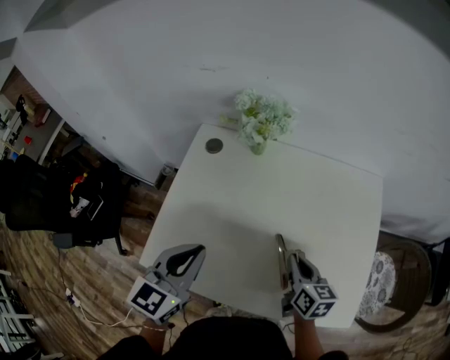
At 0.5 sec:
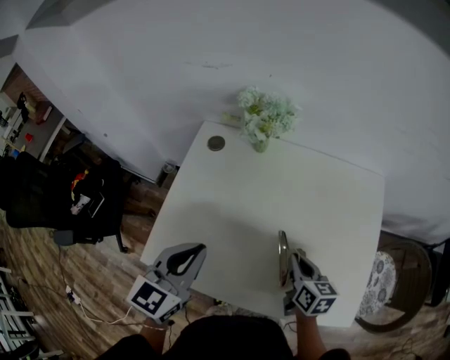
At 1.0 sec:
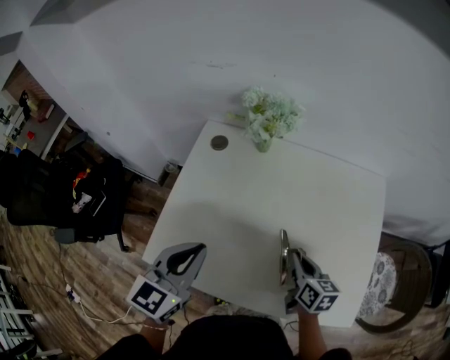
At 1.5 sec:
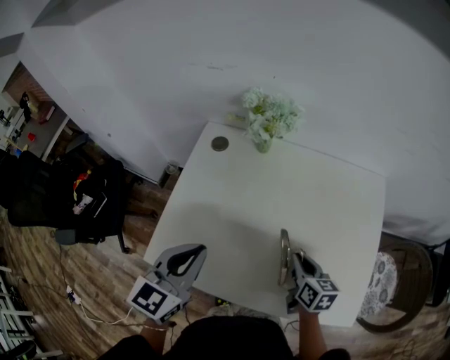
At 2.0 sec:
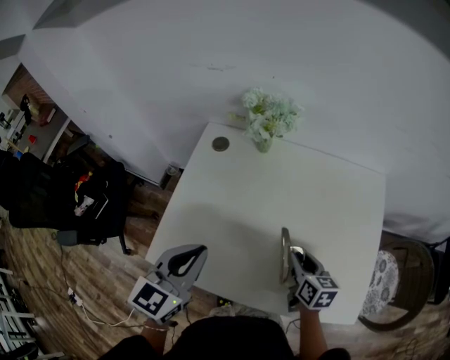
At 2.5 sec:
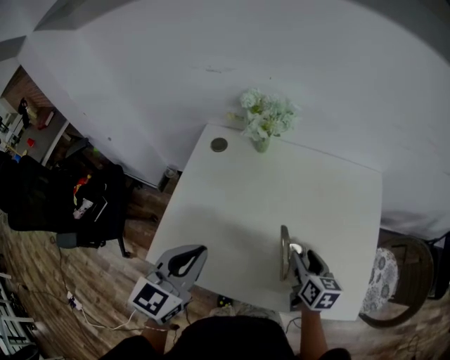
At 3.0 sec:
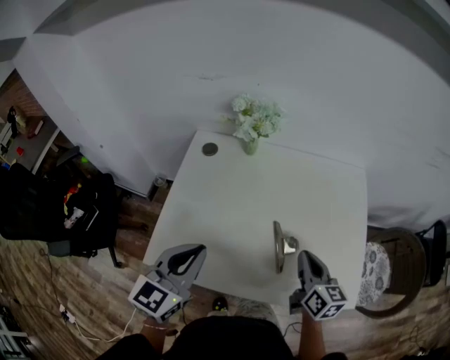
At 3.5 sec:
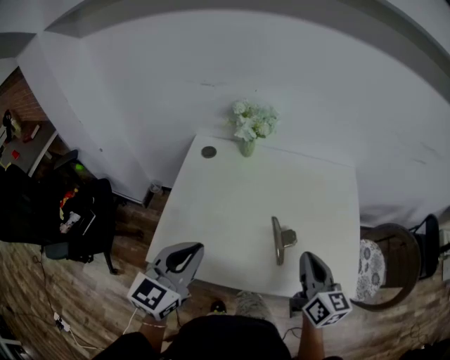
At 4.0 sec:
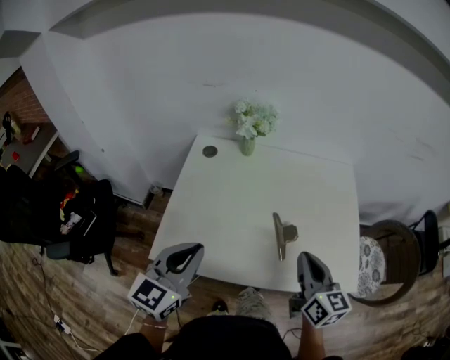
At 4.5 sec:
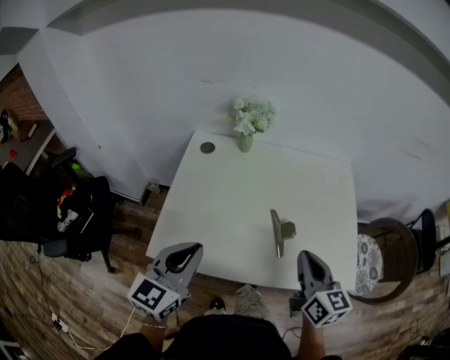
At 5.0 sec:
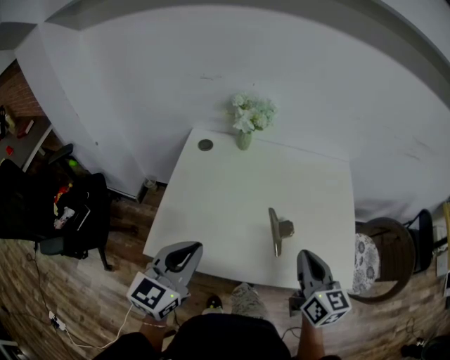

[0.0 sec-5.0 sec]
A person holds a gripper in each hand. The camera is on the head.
0.0 sec to 2.5 sec: The right gripper opens its fingers.
2.5 sec to 5.0 sec: The right gripper moves upward and backward, some 20 cm, turns by some 20 degrees, and closes its fingers; the left gripper heads backward, covering roughly 10 cm.

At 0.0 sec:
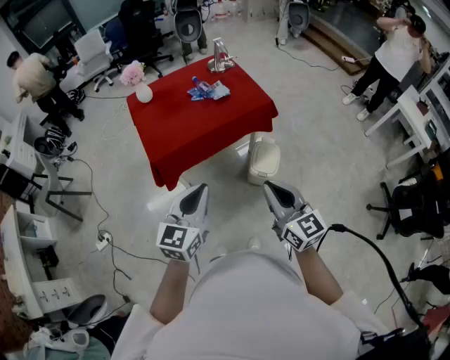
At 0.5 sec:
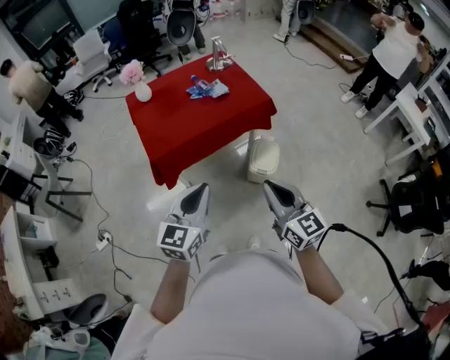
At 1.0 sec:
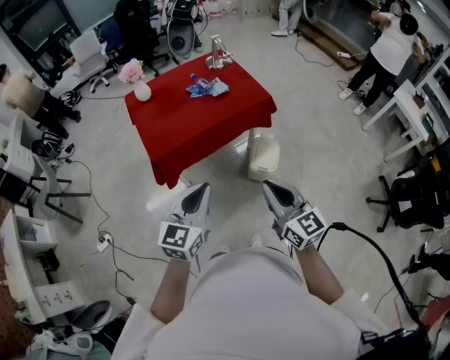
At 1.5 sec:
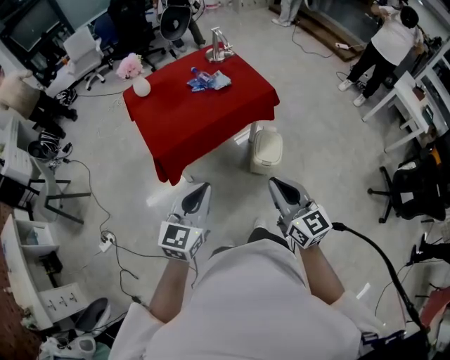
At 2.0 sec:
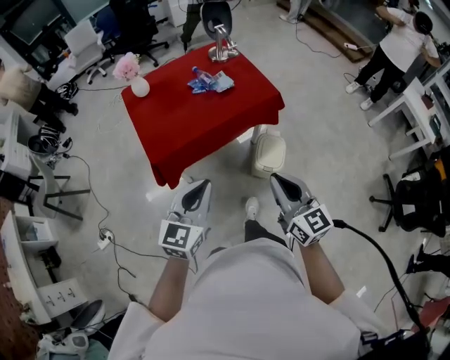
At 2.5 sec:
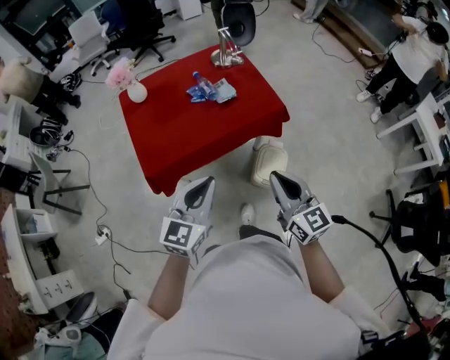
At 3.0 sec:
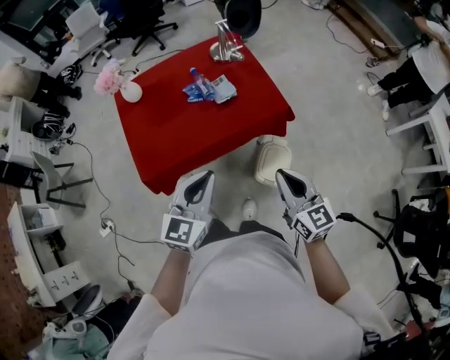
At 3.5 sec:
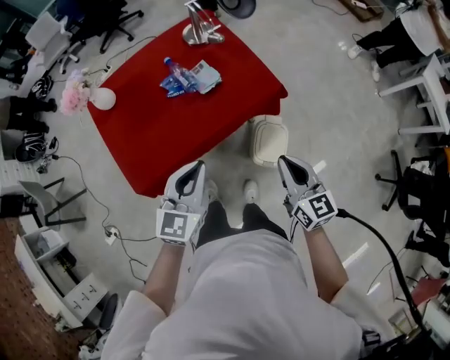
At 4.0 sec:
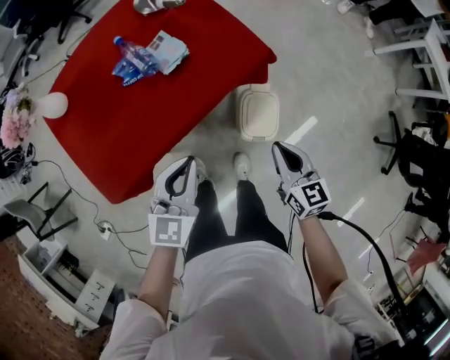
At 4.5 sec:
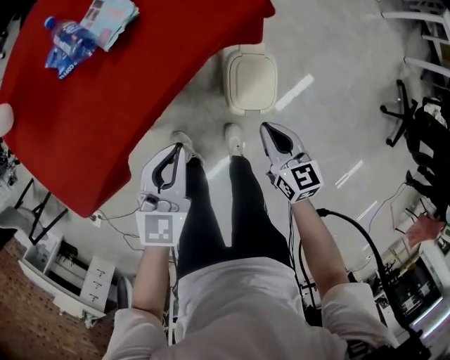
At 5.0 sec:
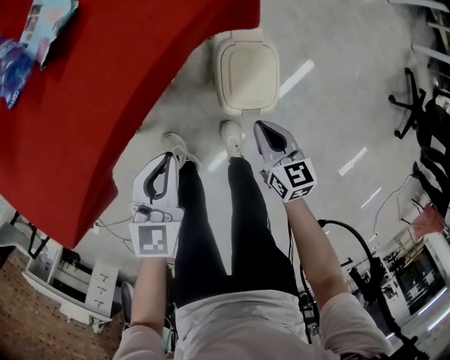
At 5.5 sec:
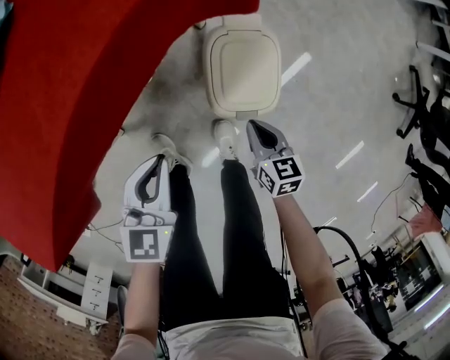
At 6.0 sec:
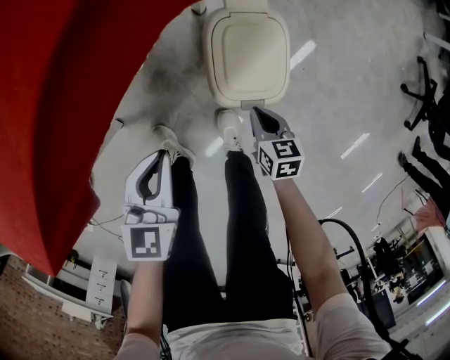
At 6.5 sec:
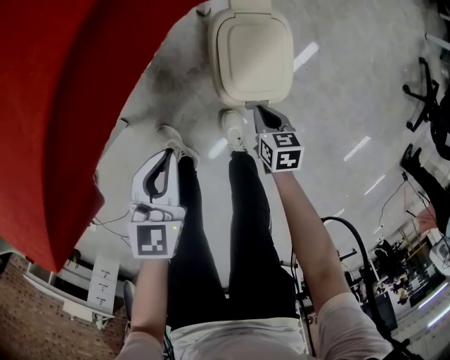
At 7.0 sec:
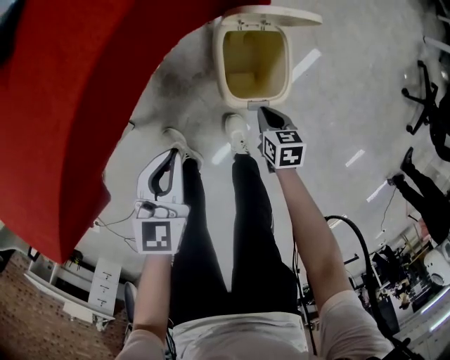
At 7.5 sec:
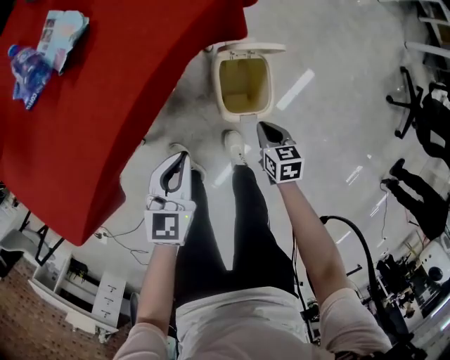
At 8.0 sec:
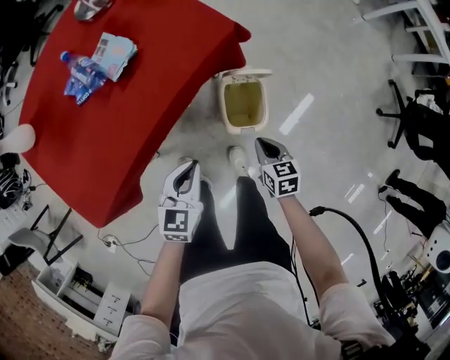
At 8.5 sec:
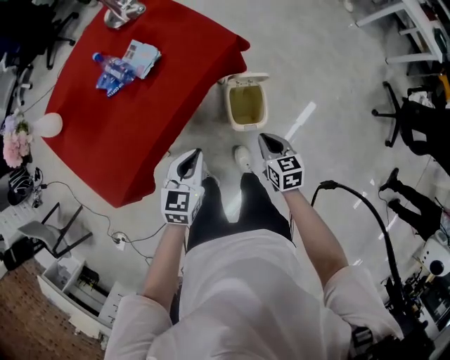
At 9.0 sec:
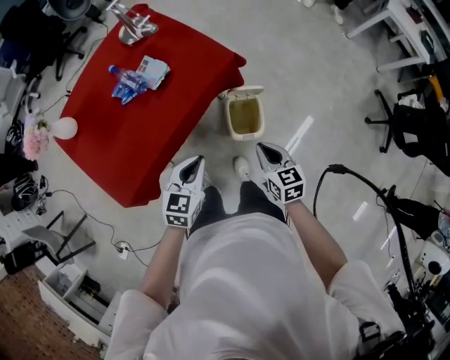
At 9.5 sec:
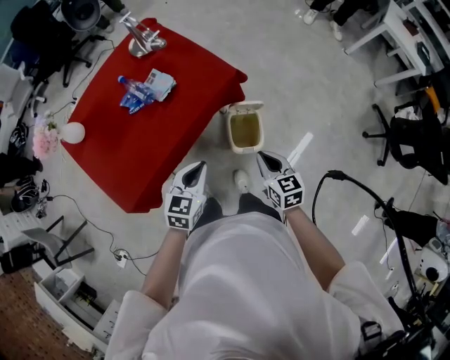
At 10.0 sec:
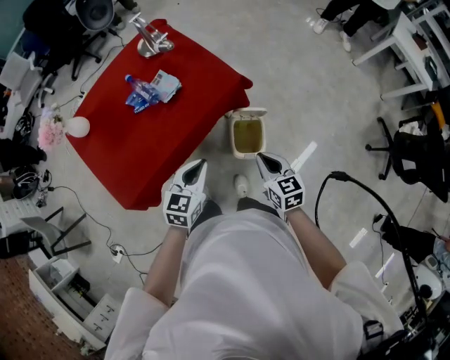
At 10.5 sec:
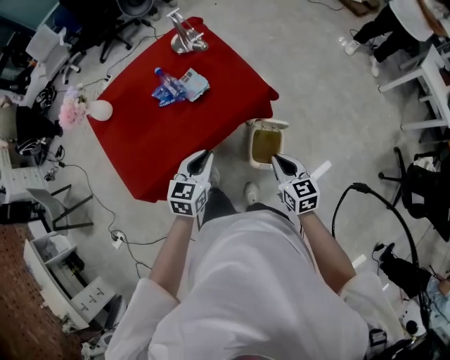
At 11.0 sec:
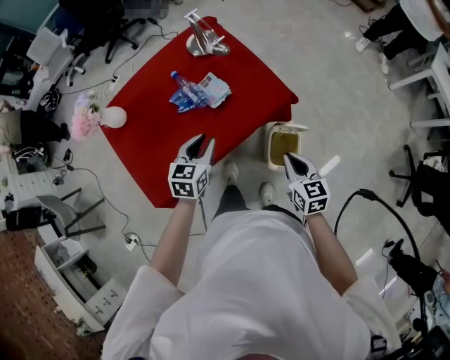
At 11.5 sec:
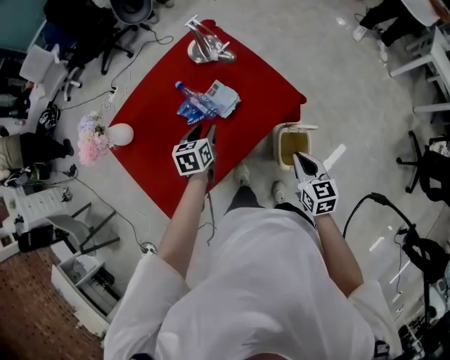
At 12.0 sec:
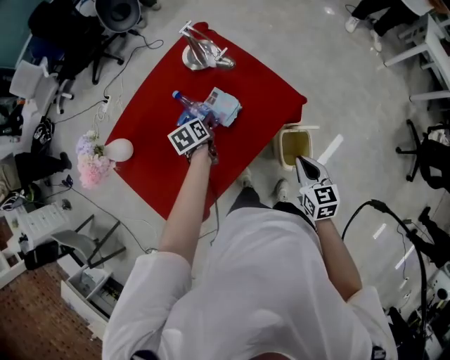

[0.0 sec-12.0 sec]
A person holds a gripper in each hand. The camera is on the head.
0.0 sec to 2.0 sec: The grippers both shift forward by approximately 5 cm.
2.0 sec to 4.0 sec: The right gripper shifts about 40 cm forward, downward and to the right, and turns by roughly 30 degrees, while the left gripper shifts some 35 cm forward and downward.
4.0 sec to 6.0 sec: The two grippers go about 40 cm downward. The right gripper rotates about 30 degrees.
6.0 sec to 8.0 sec: Both grippers move upward, about 25 cm.
8.0 sec to 10.0 sec: Both grippers move upward, some 25 cm.
10.0 sec to 12.0 sec: The left gripper heads forward and to the left, covering roughly 40 cm, rotates roughly 50 degrees, and opens; the right gripper goes roughly 15 cm forward and to the left.

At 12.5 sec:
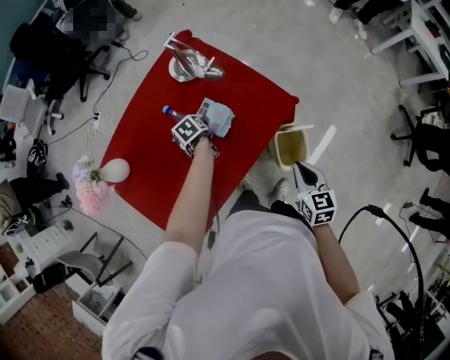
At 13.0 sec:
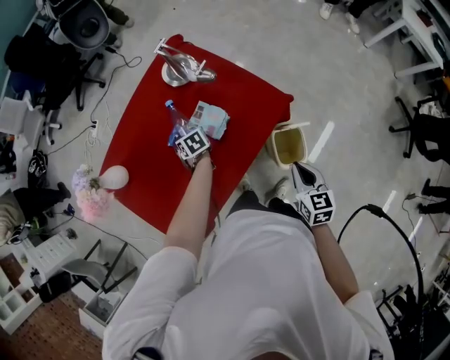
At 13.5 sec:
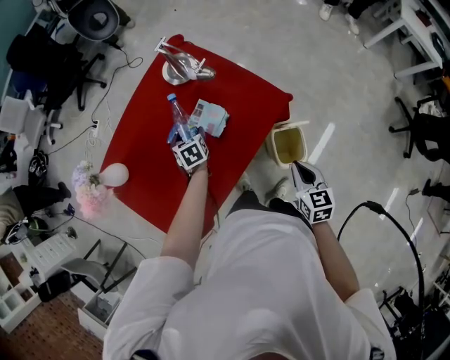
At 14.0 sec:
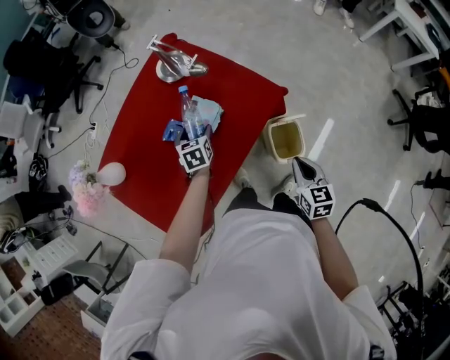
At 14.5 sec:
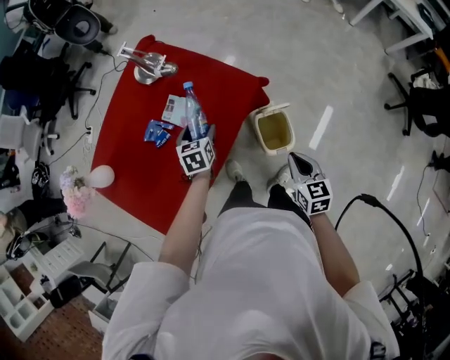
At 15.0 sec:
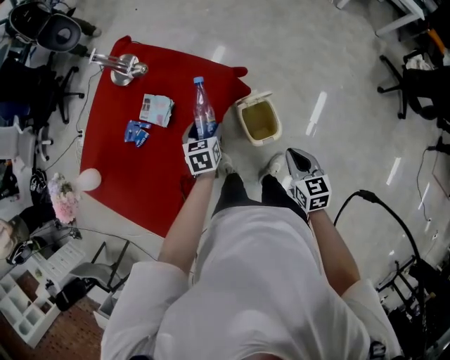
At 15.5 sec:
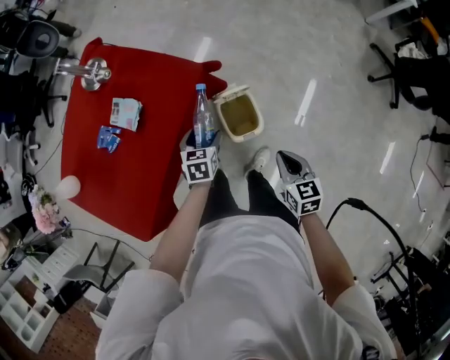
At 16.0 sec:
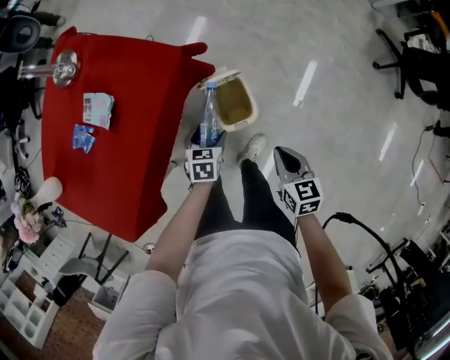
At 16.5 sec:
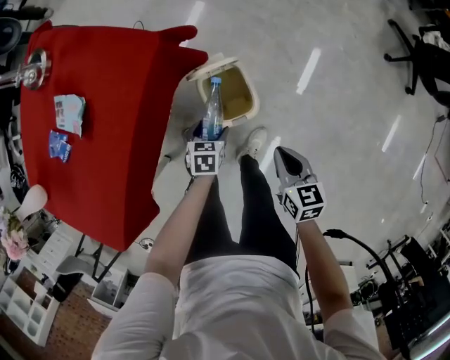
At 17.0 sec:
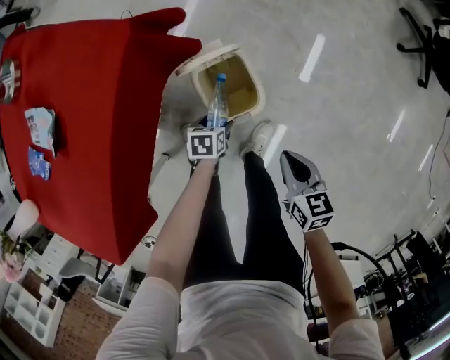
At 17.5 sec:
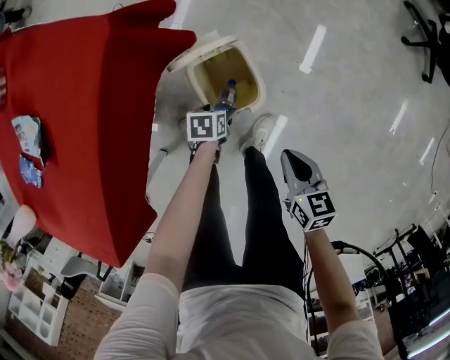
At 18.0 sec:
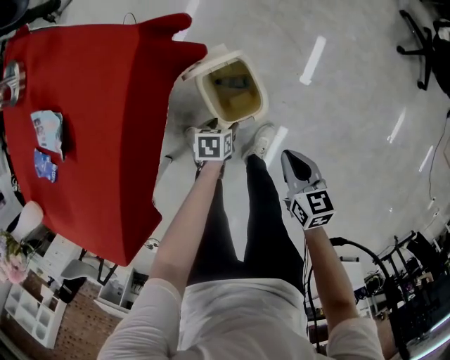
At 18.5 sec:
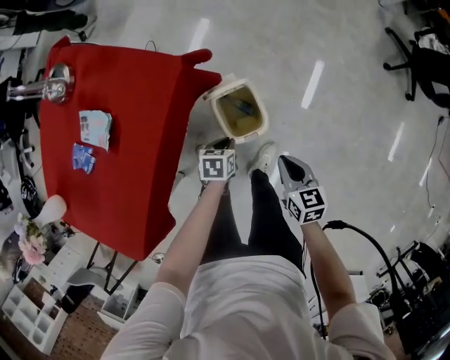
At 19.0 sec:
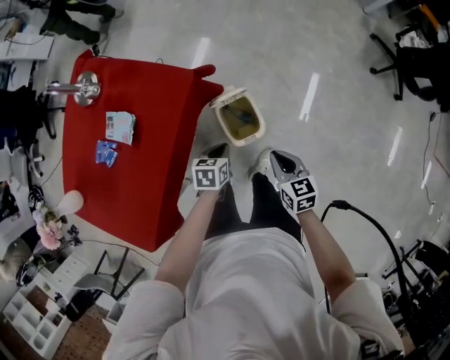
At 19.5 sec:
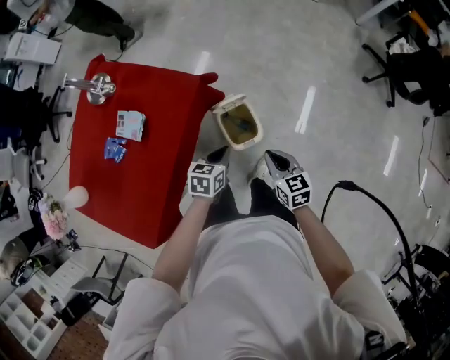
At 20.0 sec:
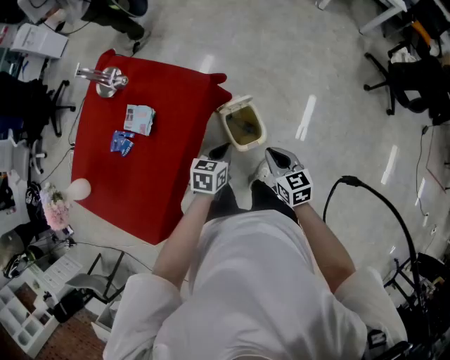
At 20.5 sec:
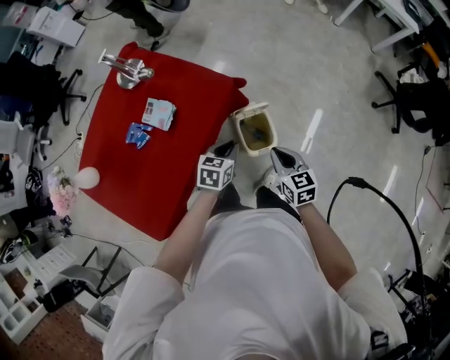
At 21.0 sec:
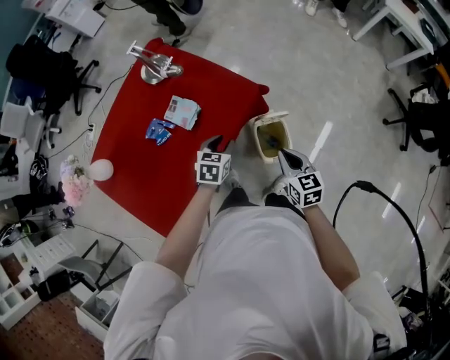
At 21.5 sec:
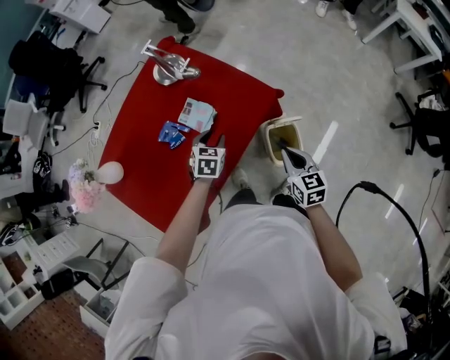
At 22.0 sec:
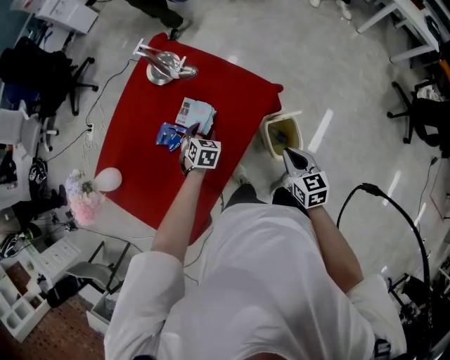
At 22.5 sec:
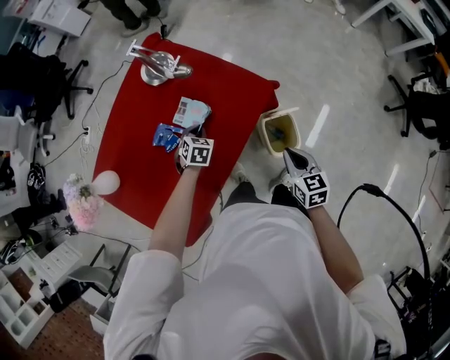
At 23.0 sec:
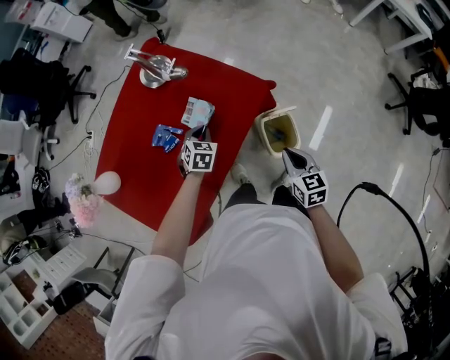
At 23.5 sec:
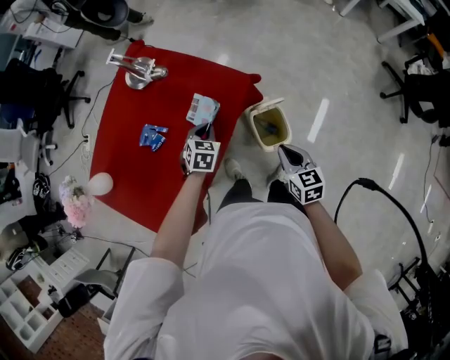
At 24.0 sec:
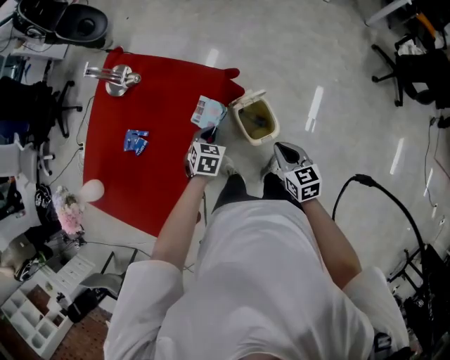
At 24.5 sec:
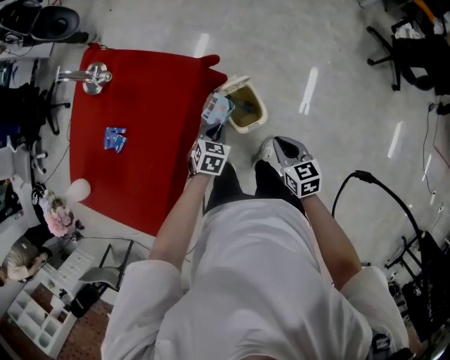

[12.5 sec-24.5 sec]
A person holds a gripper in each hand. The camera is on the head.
12.5 sec to 14.5 sec: The left gripper moves to the right, backward and upward, some 20 cm, and turns by roughly 40 degrees. Meanwhile the right gripper travels to the right and backward by some 10 cm.
14.5 sec to 16.5 sec: The right gripper heads downward and to the right, covering about 25 cm, while the left gripper goes some 40 cm downward and to the right, and rotates approximately 30 degrees.
16.5 sec to 18.5 sec: The right gripper goes downward and returns, approximately 10 cm each way; the left gripper reaches roughly 15 cm downward, then returns, and closes up.
18.5 sec to 20.5 sec: The right gripper shifts approximately 20 cm upward and to the left, while the left gripper is displaced upward by about 25 cm, and changes its angle by some 20 degrees.
20.5 sec to 22.5 sec: The right gripper goes approximately 10 cm to the left and forward. The left gripper heads to the left and forward, covering approximately 30 cm, swivels approximately 30 degrees, and opens, then closes once more.
22.5 sec to 24.5 sec: The right gripper travels to the right and backward by about 20 cm. The left gripper goes some 30 cm to the right.
